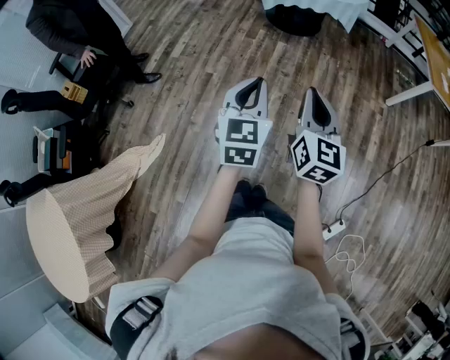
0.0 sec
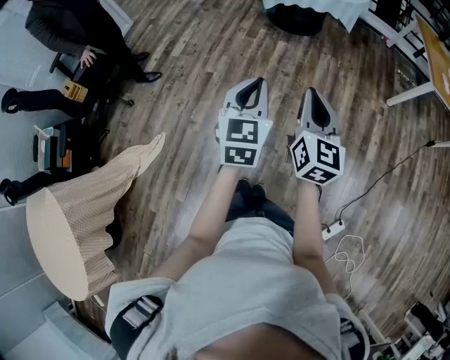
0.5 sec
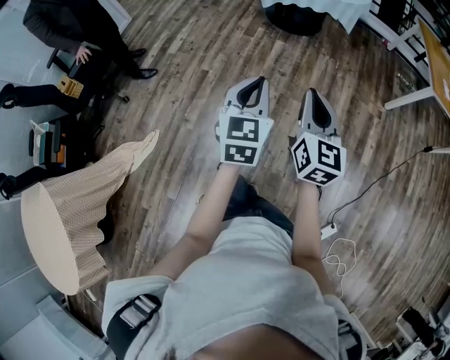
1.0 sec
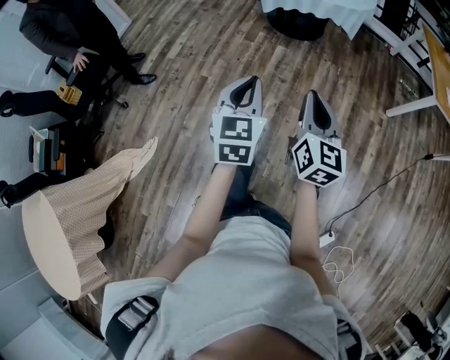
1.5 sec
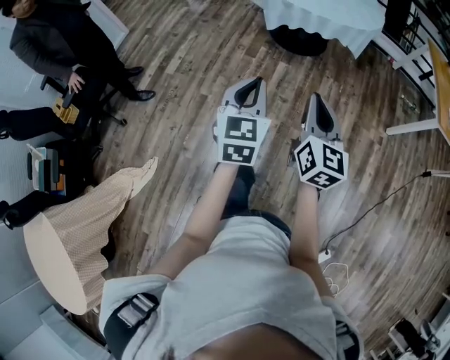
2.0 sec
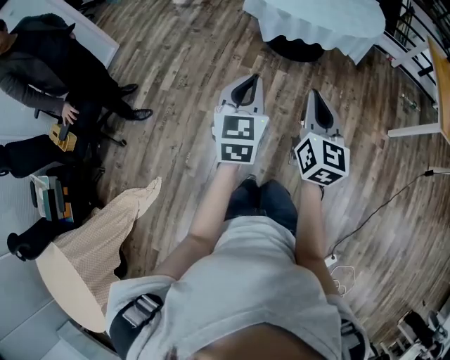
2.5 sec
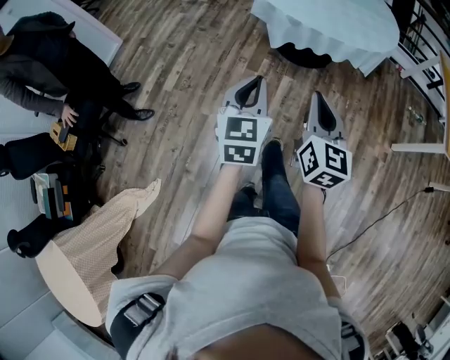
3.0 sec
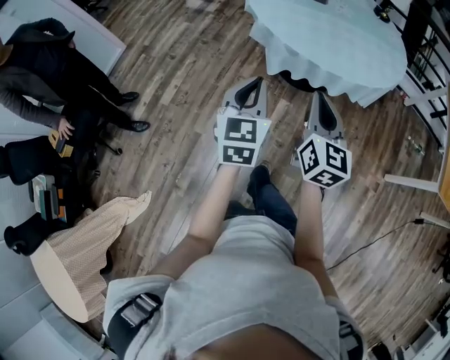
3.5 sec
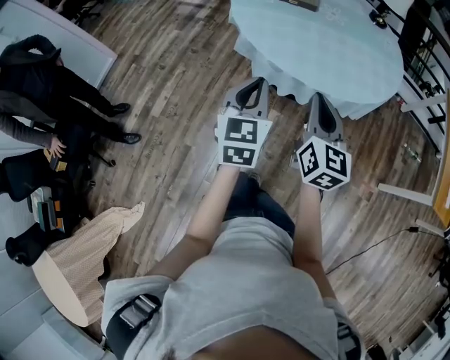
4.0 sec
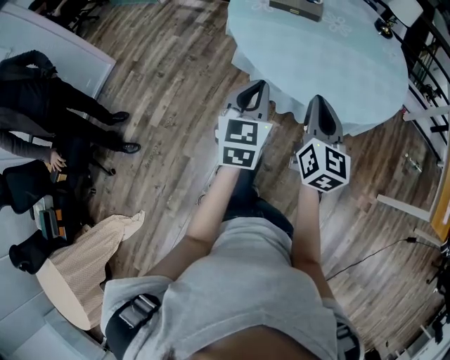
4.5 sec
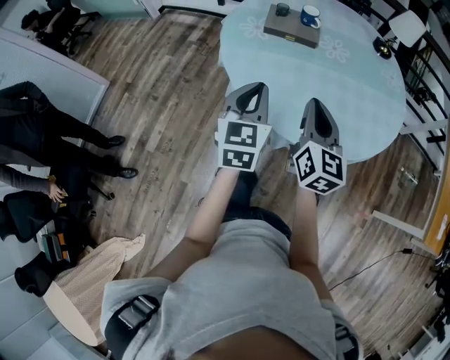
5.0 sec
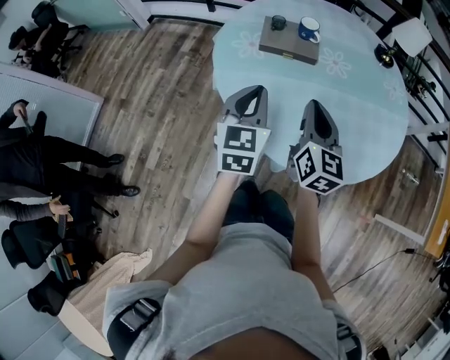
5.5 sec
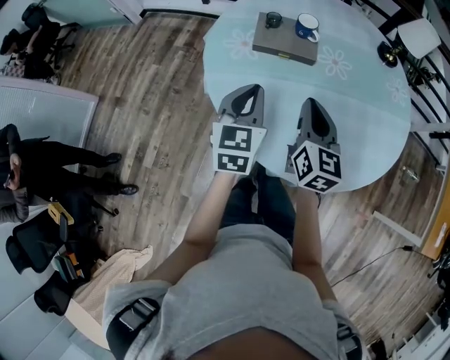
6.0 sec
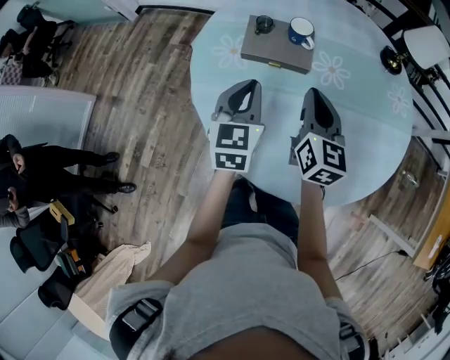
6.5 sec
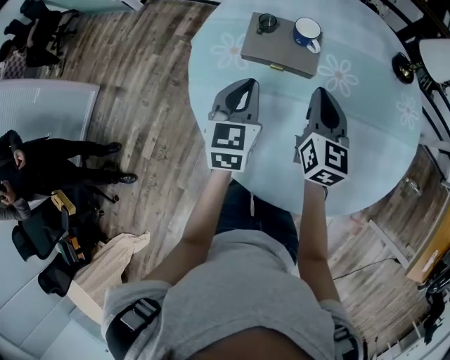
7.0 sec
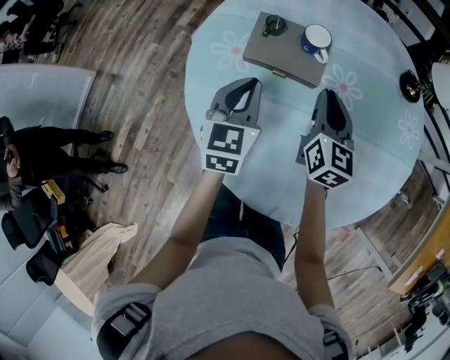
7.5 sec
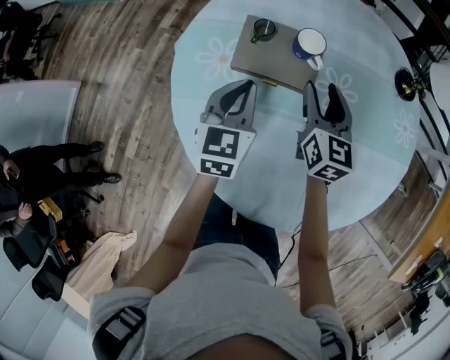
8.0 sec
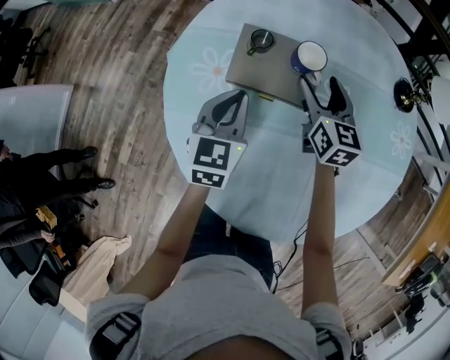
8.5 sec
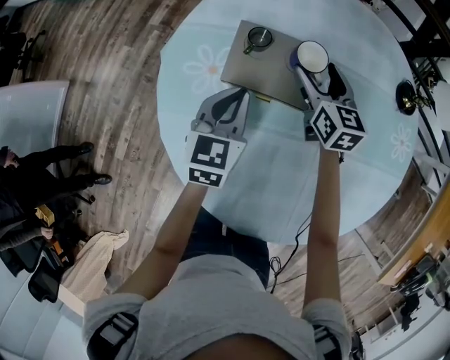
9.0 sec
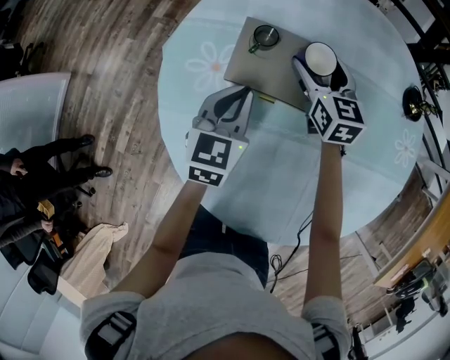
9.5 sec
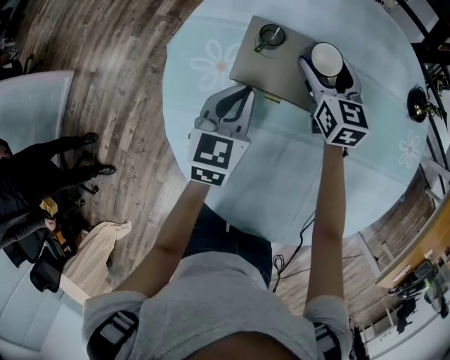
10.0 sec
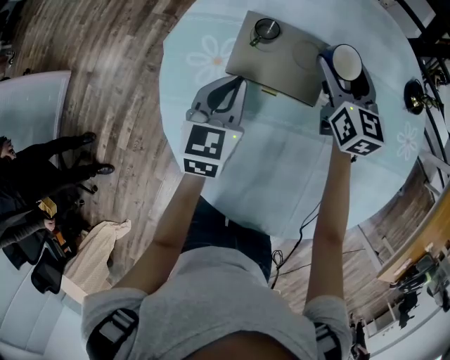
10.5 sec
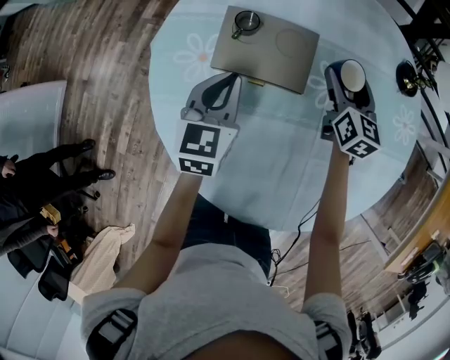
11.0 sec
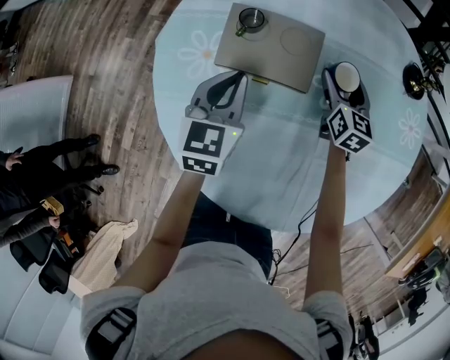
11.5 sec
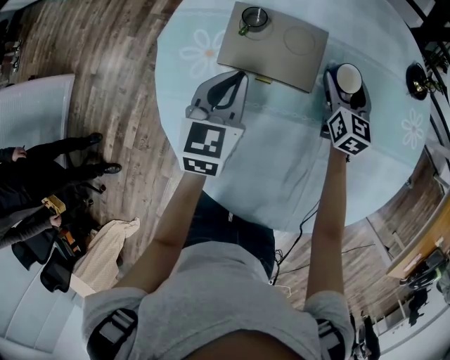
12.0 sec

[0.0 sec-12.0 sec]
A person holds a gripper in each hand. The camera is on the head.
0.0 sec to 2.0 sec: The grippers both shift forward by approximately 25 cm.
2.0 sec to 4.0 sec: The pair of grippers is taken forward, roughly 50 cm.
4.0 sec to 6.0 sec: Both grippers are carried forward, about 40 cm.
6.0 sec to 8.0 sec: The left gripper shifts roughly 20 cm forward and downward. The right gripper shifts some 25 cm forward, and opens up.
8.0 sec to 10.0 sec: The left gripper shifts roughly 5 cm downward, while the right gripper heads forward and downward, covering about 15 cm, and opens its fingers.
10.0 sec to 12.0 sec: The right gripper goes approximately 15 cm to the right.

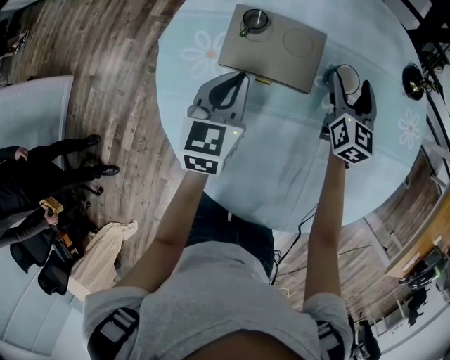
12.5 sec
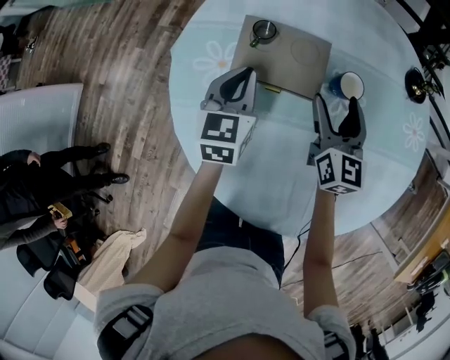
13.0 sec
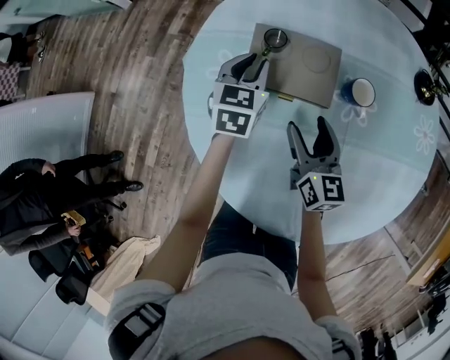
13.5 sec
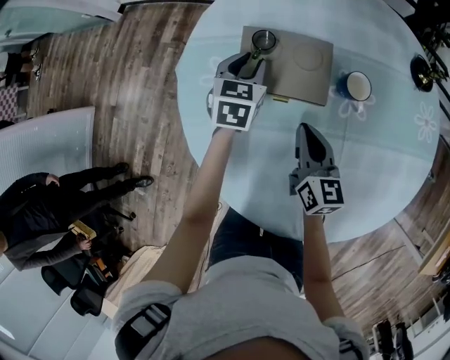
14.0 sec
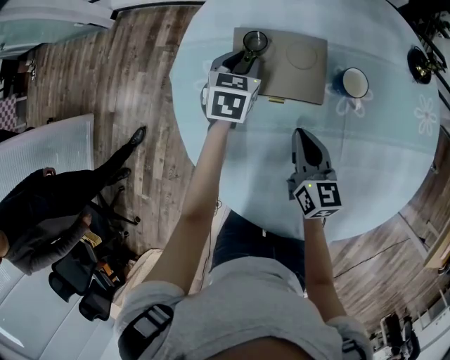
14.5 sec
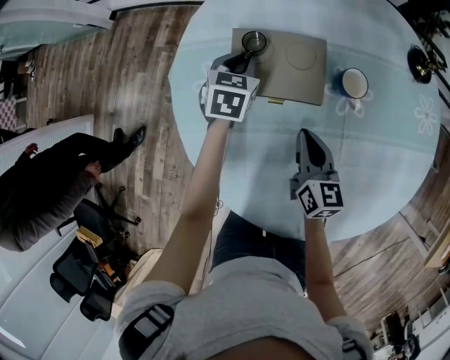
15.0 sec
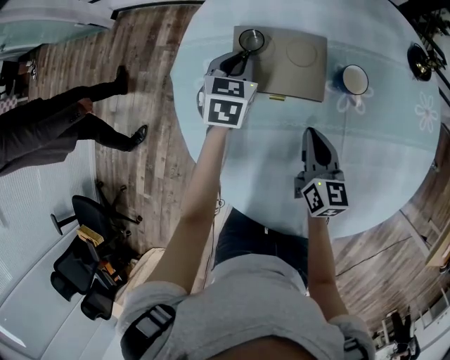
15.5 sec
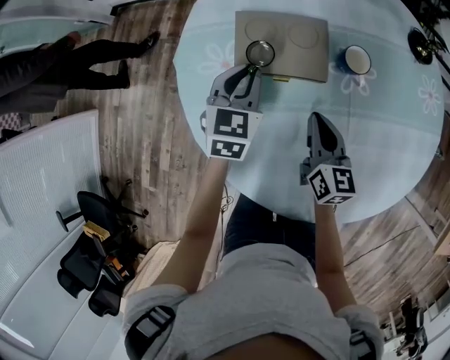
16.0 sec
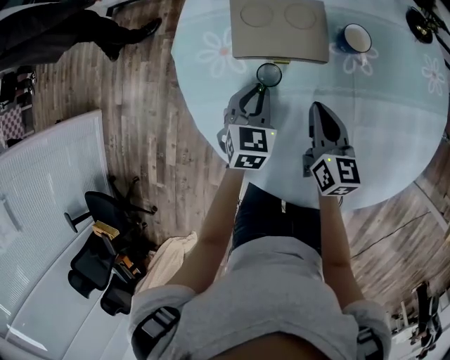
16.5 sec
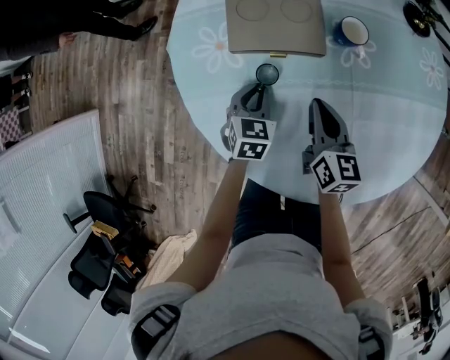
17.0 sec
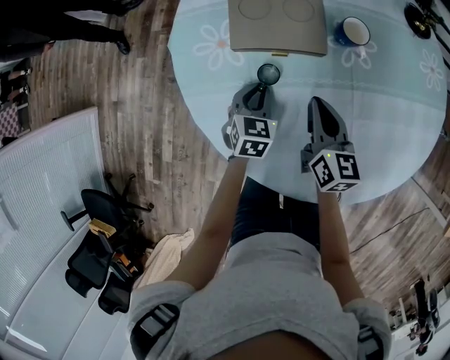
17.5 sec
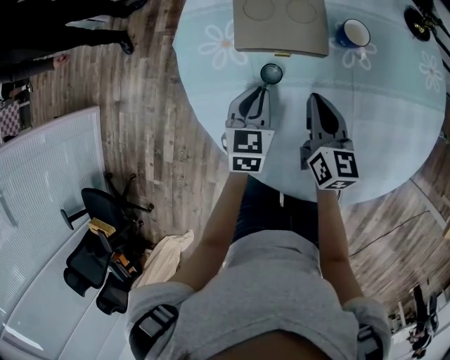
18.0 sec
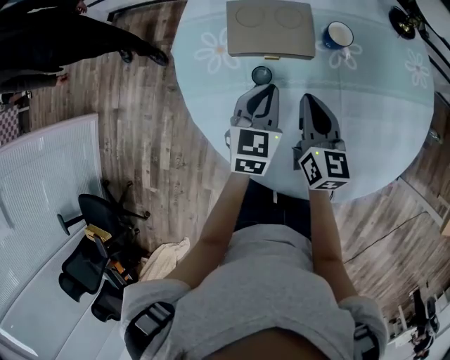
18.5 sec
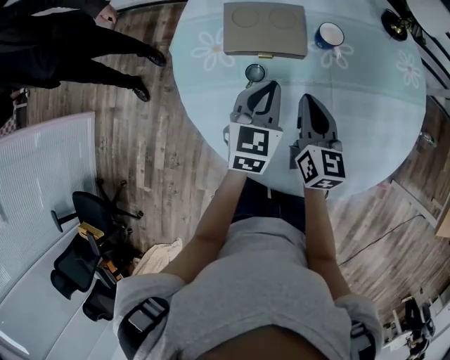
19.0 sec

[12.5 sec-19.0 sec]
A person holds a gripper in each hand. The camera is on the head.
12.5 sec to 14.5 sec: The left gripper goes roughly 15 cm forward and downward, and opens its fingers, while the right gripper is displaced backward and to the left by approximately 20 cm, swivels some 20 degrees, and closes its fingers.
14.5 sec to 17.0 sec: The left gripper moves backward, roughly 20 cm. Meanwhile the right gripper moves about 5 cm.
17.0 sec to 19.0 sec: The left gripper shifts about 15 cm upward and to the right. The right gripper moves upward, roughly 5 cm.

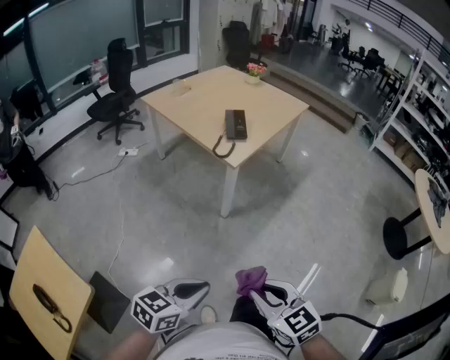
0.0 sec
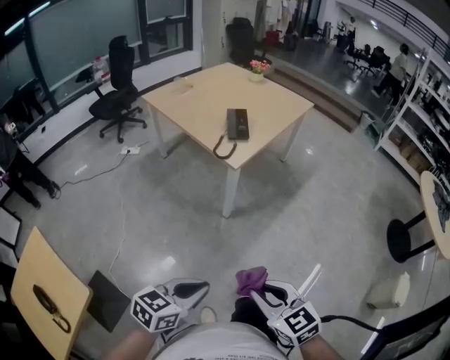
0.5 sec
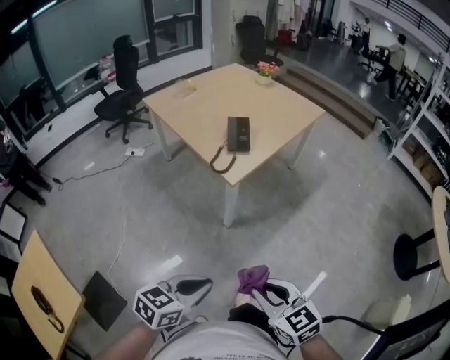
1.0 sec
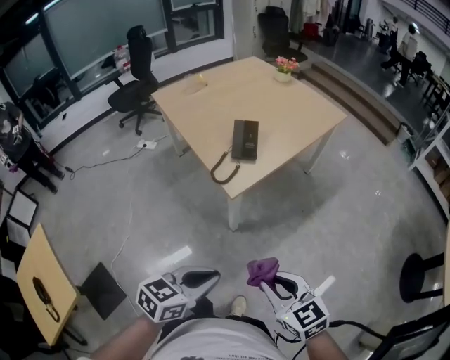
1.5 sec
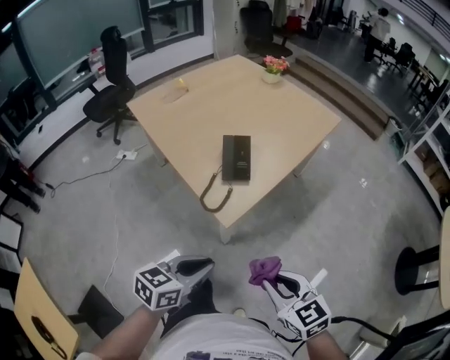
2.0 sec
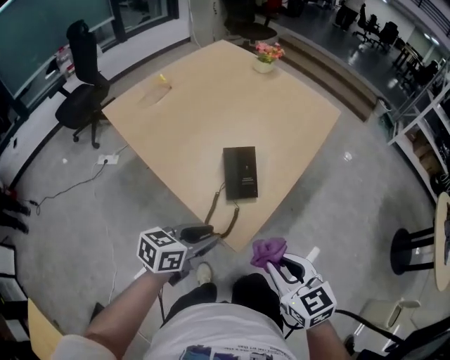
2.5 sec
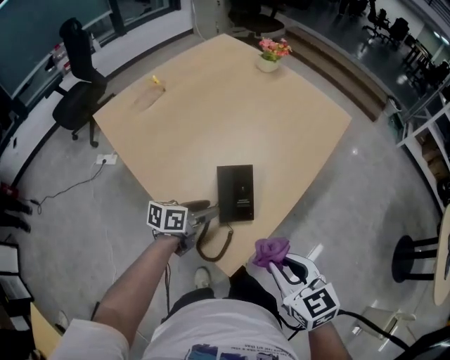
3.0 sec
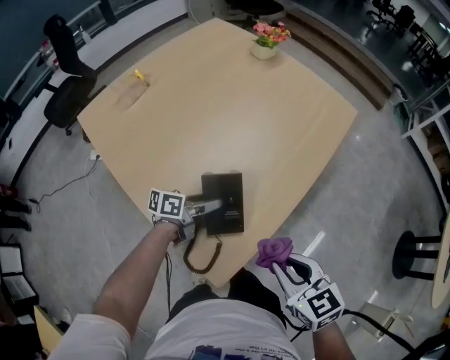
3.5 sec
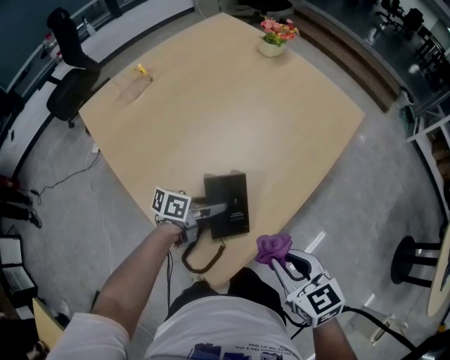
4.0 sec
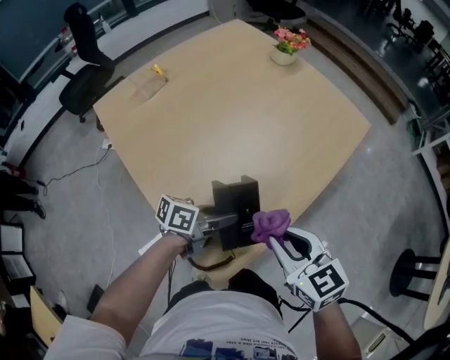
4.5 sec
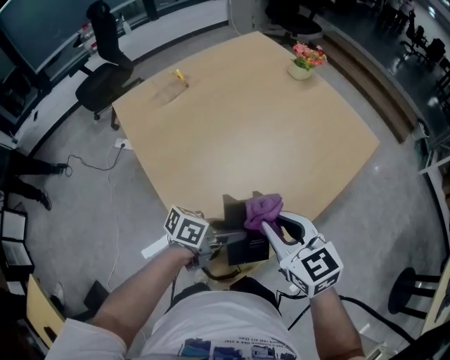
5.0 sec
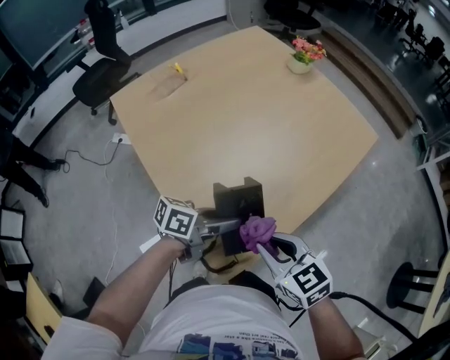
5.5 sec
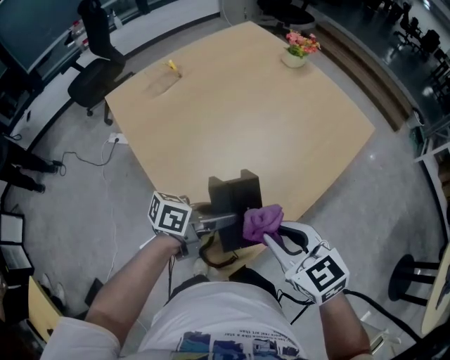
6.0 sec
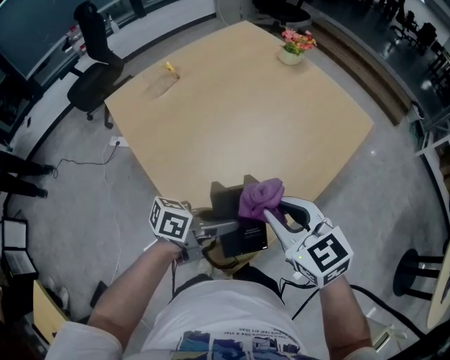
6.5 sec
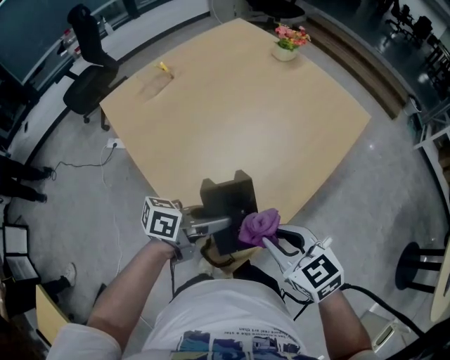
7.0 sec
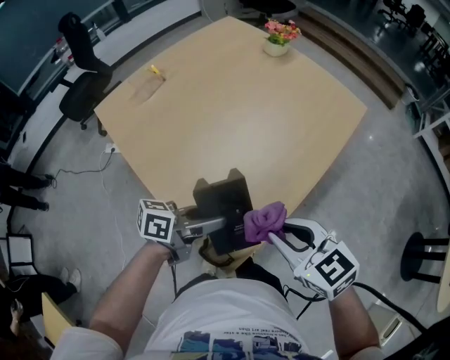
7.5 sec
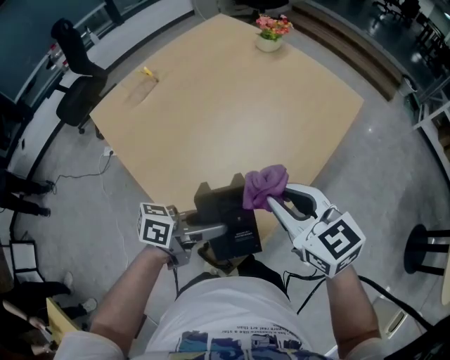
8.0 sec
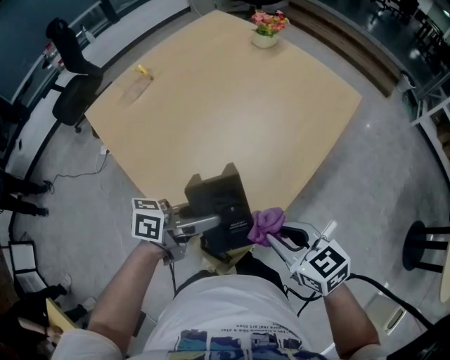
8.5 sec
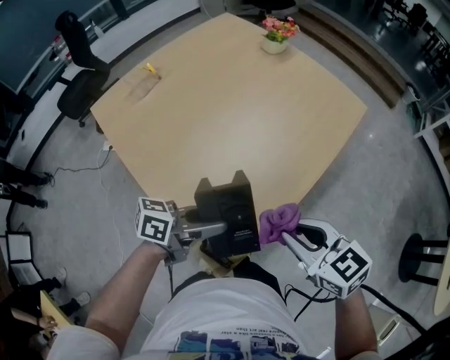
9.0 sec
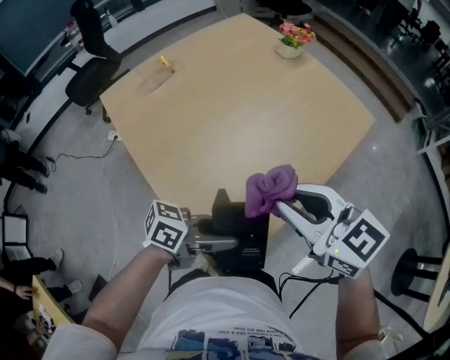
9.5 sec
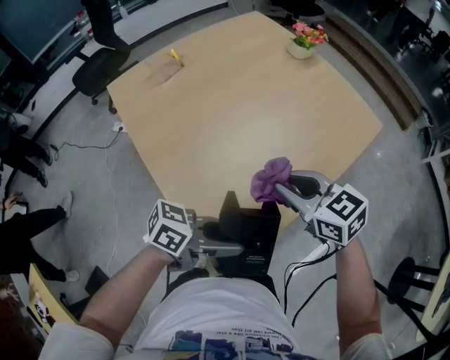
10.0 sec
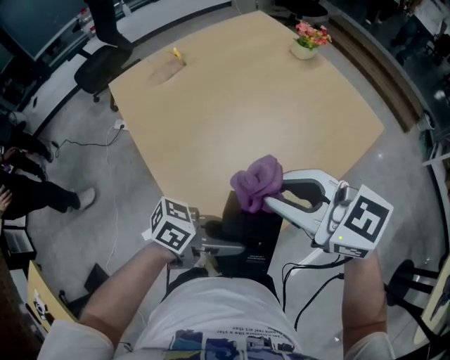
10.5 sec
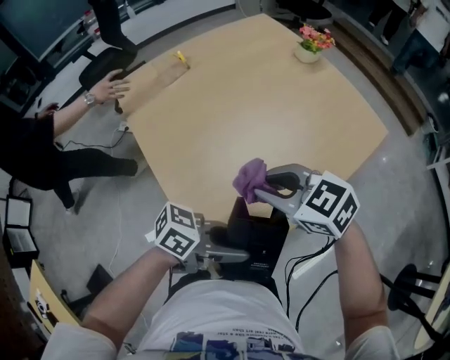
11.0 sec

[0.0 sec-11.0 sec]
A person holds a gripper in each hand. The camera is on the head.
0.0 sec to 2.0 sec: Both grippers travel together forward, roughly 35 cm.
2.0 sec to 3.5 sec: The left gripper is displaced forward by approximately 35 cm, changes its angle by approximately 30 degrees, and opens its fingers; the right gripper moves forward, roughly 25 cm.
3.5 sec to 5.5 sec: The right gripper goes approximately 10 cm to the left. The left gripper goes approximately 10 cm upward and backward.
5.5 sec to 7.5 sec: The right gripper changes place by approximately 5 cm.
7.5 sec to 9.0 sec: The right gripper reaches approximately 5 cm downward, then returns.
9.0 sec to 11.0 sec: The left gripper shifts by approximately 10 cm; the right gripper swings up and down, approximately 10 cm each way, with 3 reversals, and swivels about 30 degrees.
